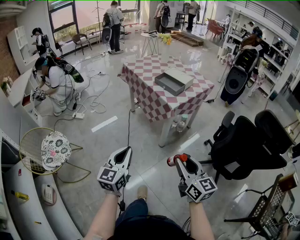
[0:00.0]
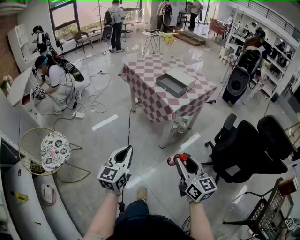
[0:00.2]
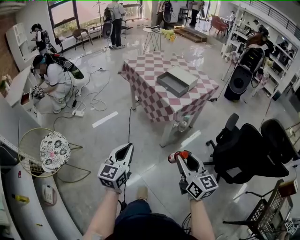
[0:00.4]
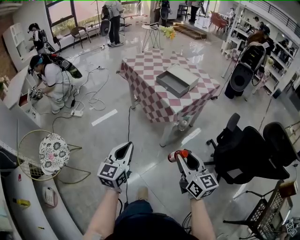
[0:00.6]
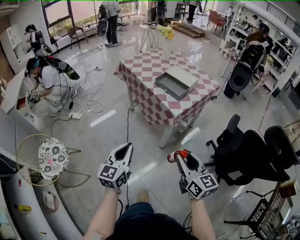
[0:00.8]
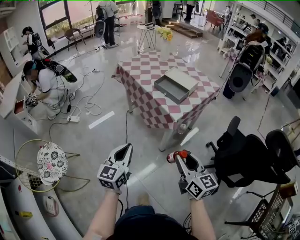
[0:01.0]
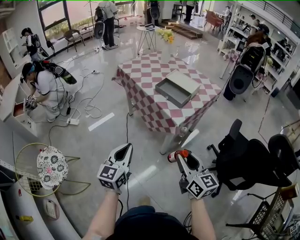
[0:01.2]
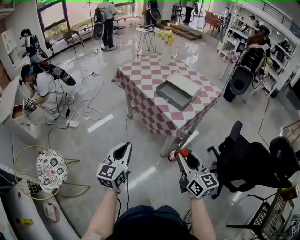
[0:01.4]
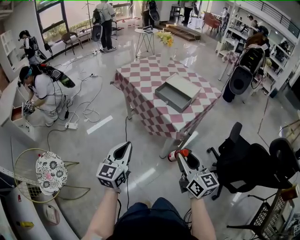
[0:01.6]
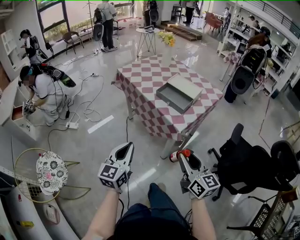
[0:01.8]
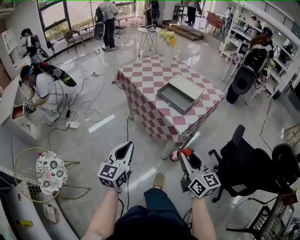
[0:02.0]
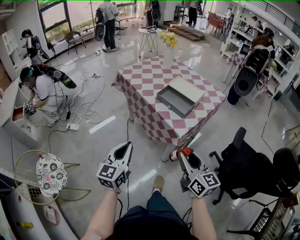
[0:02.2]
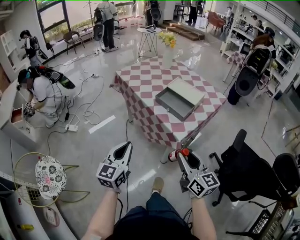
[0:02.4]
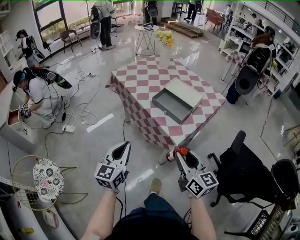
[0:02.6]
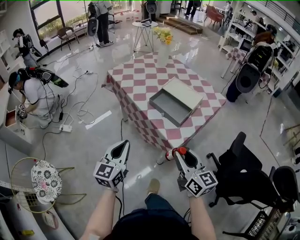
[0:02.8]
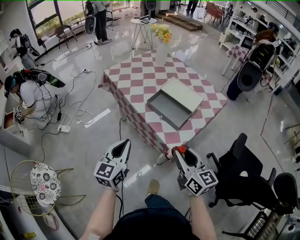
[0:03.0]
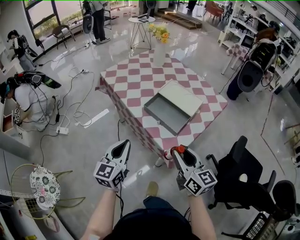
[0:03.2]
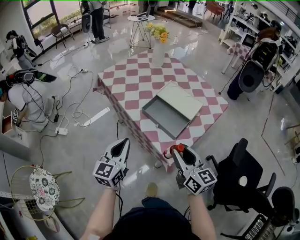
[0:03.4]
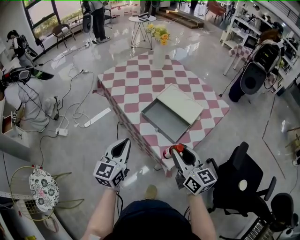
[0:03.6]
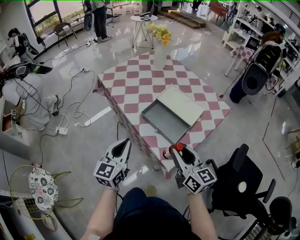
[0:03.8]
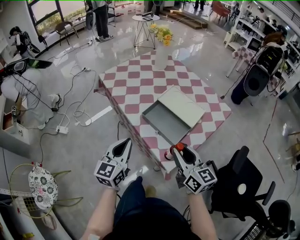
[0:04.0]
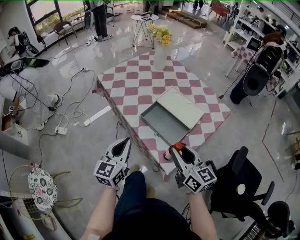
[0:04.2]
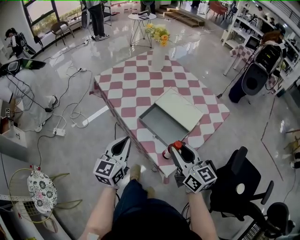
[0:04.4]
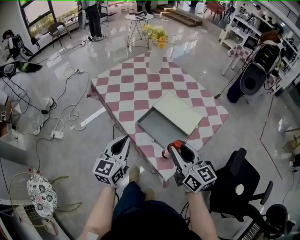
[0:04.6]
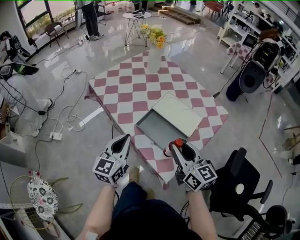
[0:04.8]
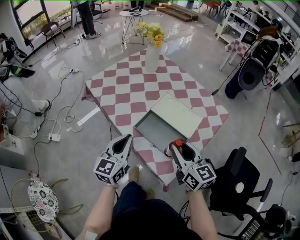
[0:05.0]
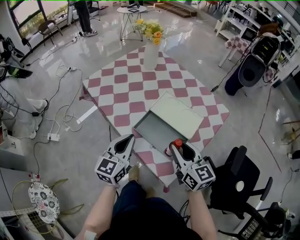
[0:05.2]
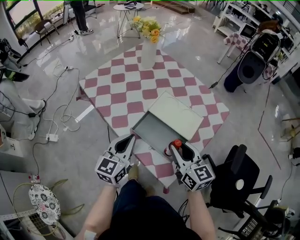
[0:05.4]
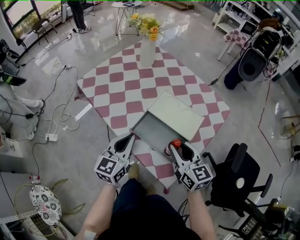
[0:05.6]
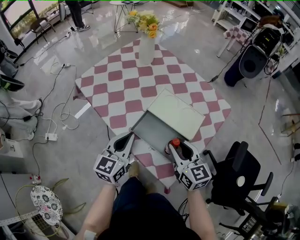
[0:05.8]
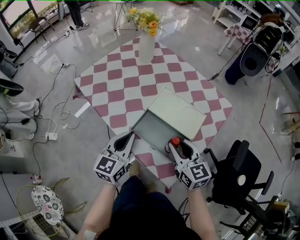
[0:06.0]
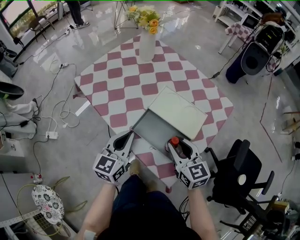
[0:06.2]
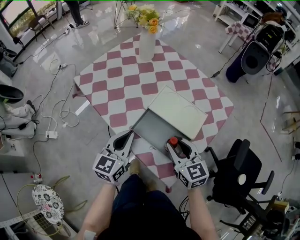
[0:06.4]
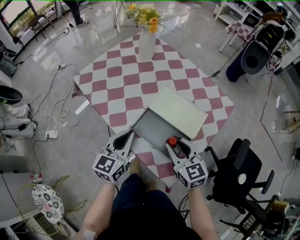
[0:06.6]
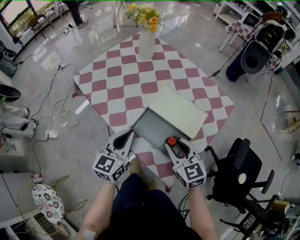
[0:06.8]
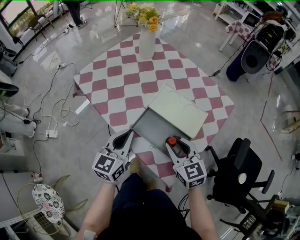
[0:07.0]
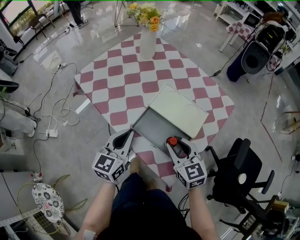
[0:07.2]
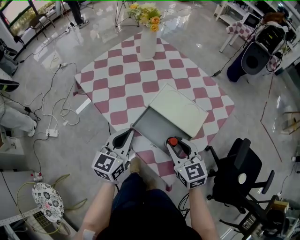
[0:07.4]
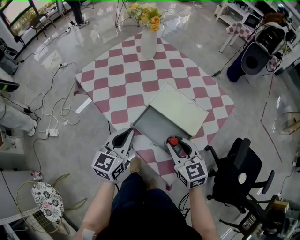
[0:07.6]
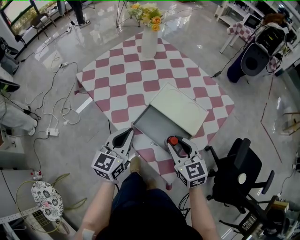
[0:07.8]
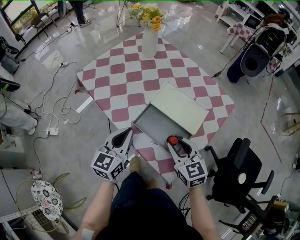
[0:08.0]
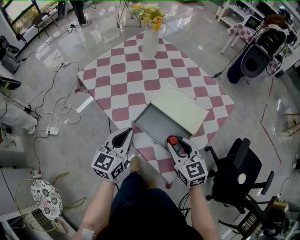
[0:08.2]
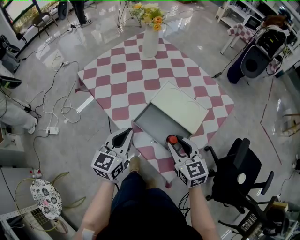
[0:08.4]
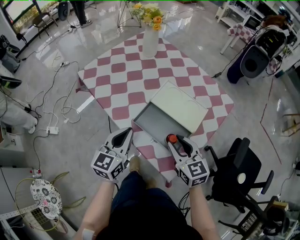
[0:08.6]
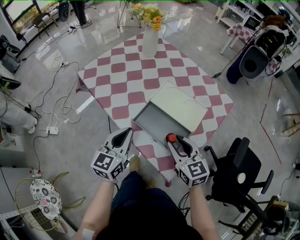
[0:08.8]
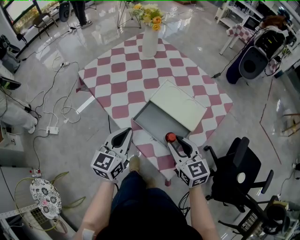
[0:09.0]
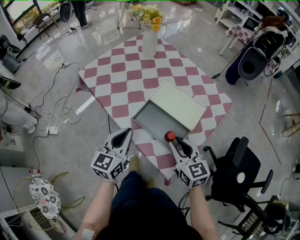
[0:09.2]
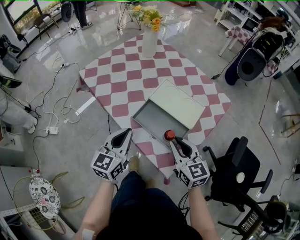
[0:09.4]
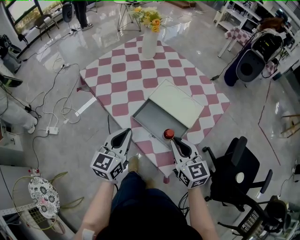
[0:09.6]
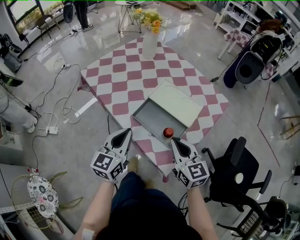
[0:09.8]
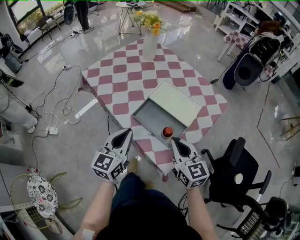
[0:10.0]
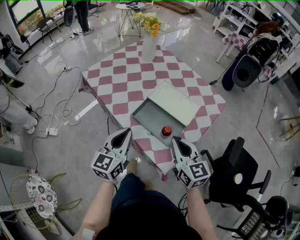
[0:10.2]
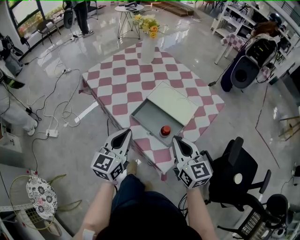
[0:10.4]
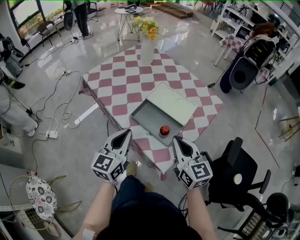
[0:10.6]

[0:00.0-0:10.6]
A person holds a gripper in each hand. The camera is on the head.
0:00.0 to 0:01.6: The two grippers go roughly 25 cm forward.
0:01.6 to 0:03.0: Both grippers travel together forward, about 20 cm.
0:03.0 to 0:04.6: Both grippers travel together forward, about 15 cm.
0:04.6 to 0:06.0: The left gripper moves forward, approximately 10 cm; the right gripper heads forward and downward, covering approximately 10 cm.
0:06.0 to 0:09.0: The grippers move only a little.
0:09.0 to 0:10.6: The left gripper shifts about 5 cm backward. Meanwhile the right gripper moves upward and backward, some 10 cm, and closes.

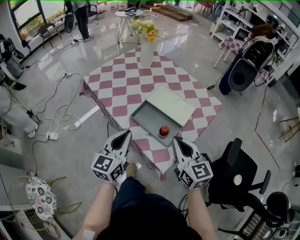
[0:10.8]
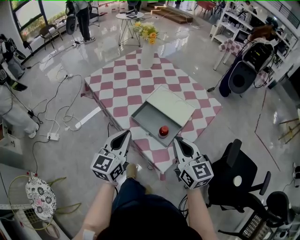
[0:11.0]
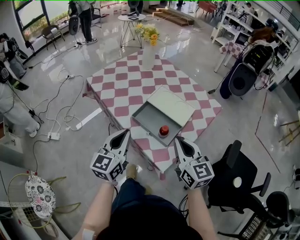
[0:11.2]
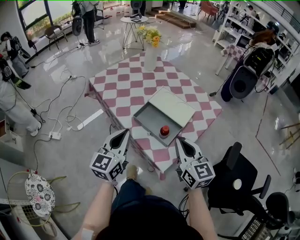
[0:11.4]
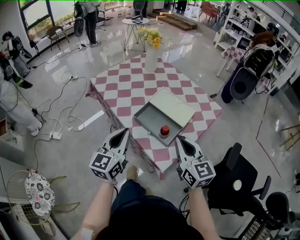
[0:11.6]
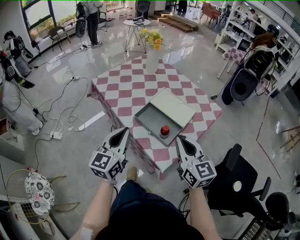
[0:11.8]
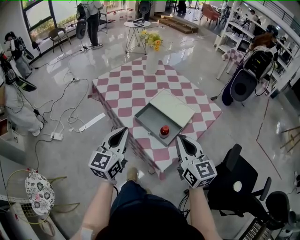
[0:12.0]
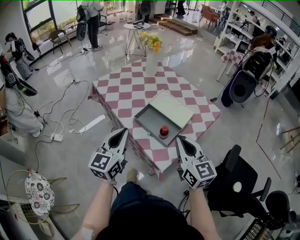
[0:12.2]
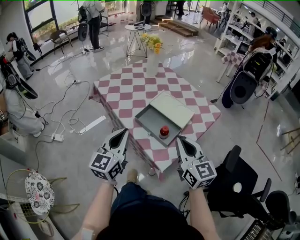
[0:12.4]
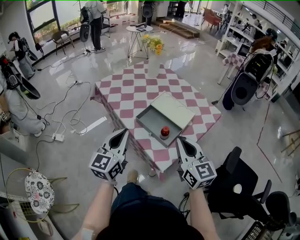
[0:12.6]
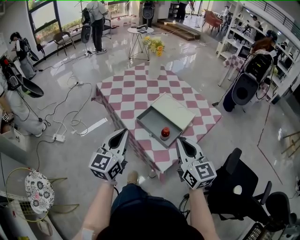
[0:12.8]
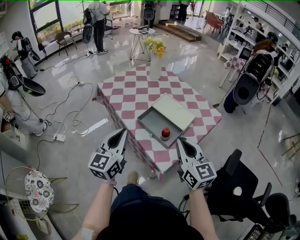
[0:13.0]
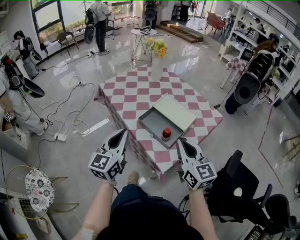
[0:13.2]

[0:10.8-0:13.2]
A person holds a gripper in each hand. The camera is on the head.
0:10.8 to 0:12.0: The right gripper shifts by roughly 5 cm. The left gripper changes place by about 5 cm.
0:12.0 to 0:13.2: The grippers make only small movements.

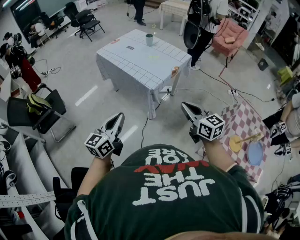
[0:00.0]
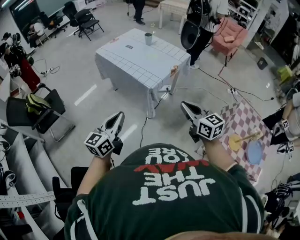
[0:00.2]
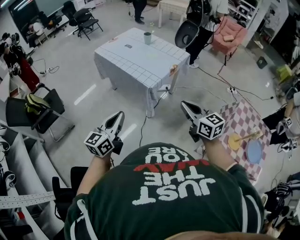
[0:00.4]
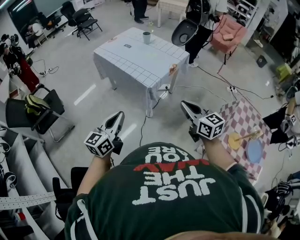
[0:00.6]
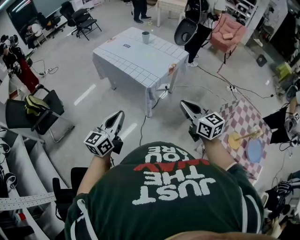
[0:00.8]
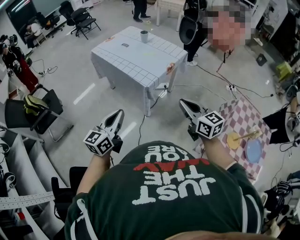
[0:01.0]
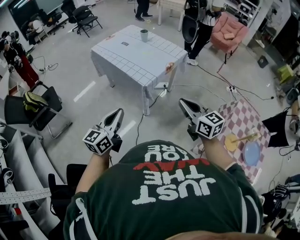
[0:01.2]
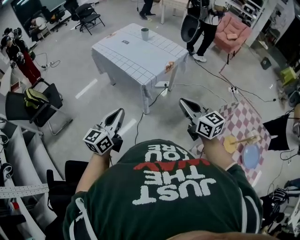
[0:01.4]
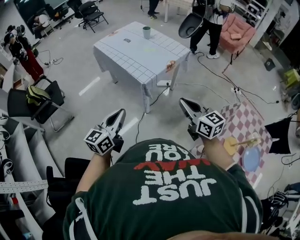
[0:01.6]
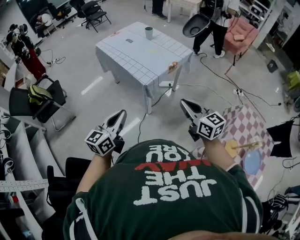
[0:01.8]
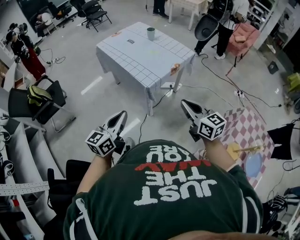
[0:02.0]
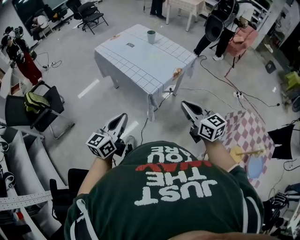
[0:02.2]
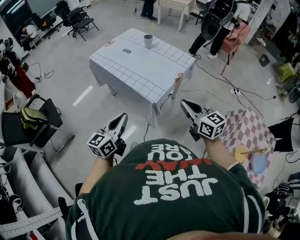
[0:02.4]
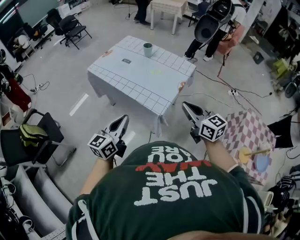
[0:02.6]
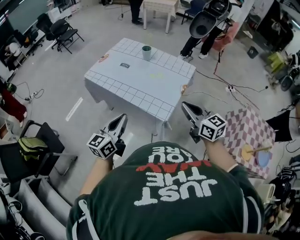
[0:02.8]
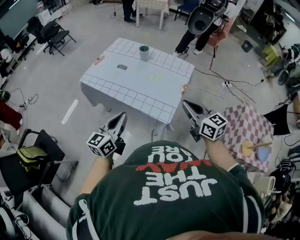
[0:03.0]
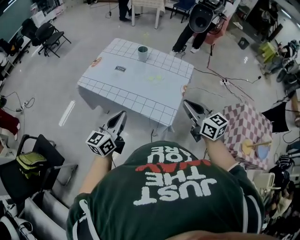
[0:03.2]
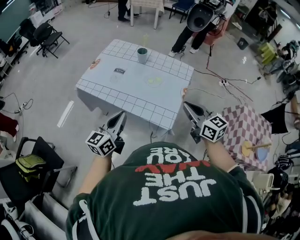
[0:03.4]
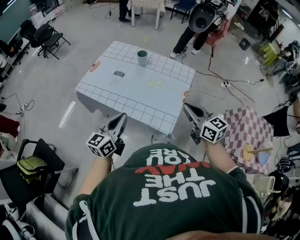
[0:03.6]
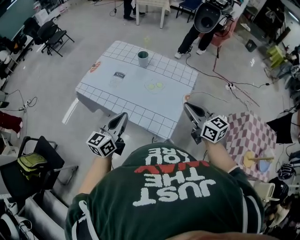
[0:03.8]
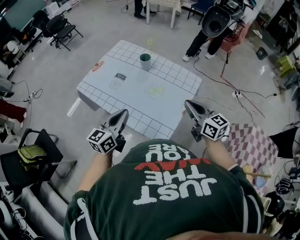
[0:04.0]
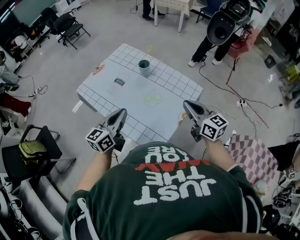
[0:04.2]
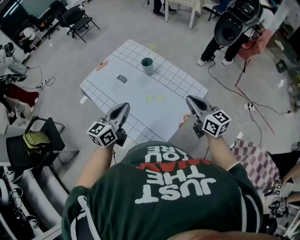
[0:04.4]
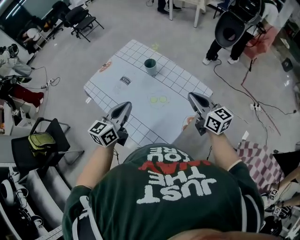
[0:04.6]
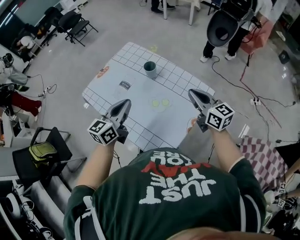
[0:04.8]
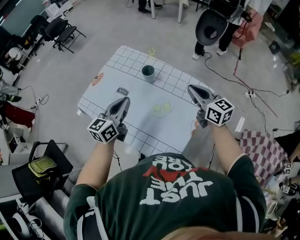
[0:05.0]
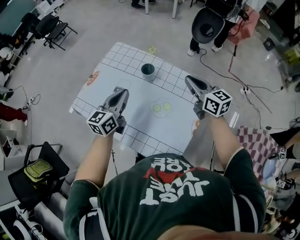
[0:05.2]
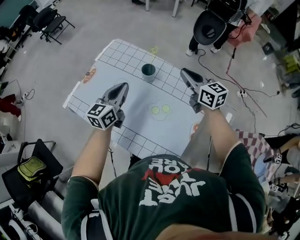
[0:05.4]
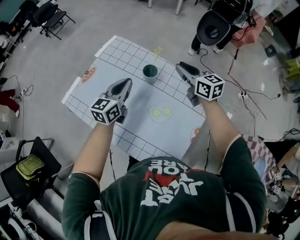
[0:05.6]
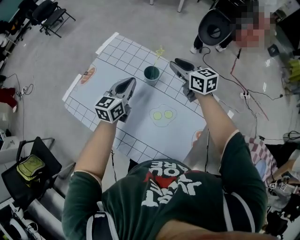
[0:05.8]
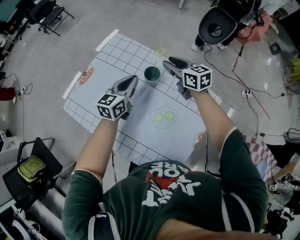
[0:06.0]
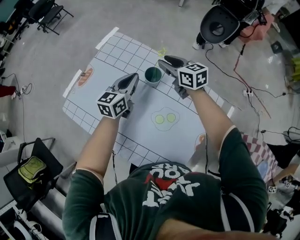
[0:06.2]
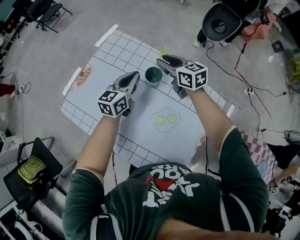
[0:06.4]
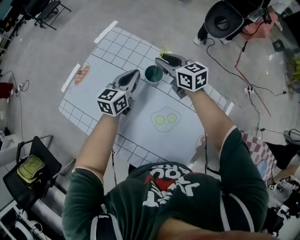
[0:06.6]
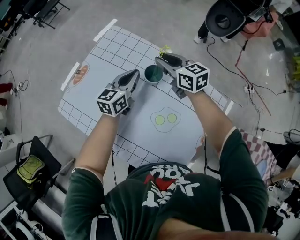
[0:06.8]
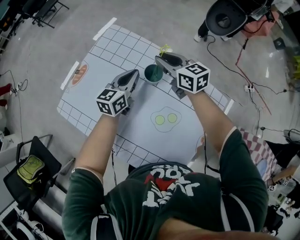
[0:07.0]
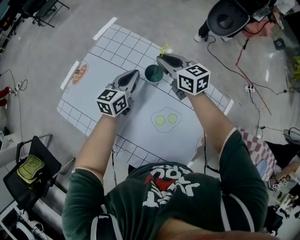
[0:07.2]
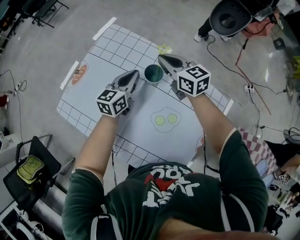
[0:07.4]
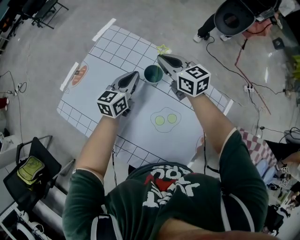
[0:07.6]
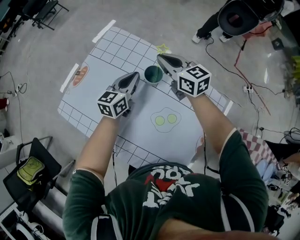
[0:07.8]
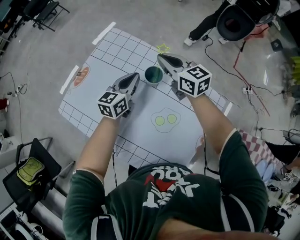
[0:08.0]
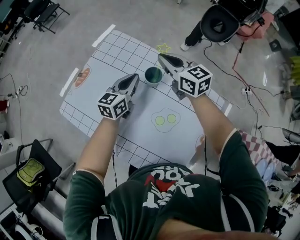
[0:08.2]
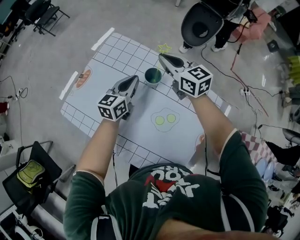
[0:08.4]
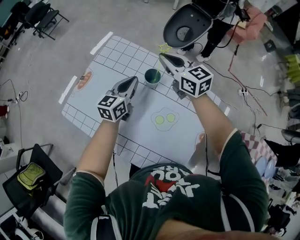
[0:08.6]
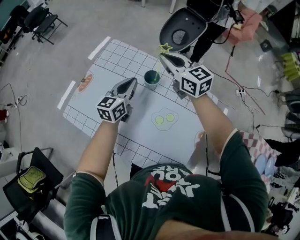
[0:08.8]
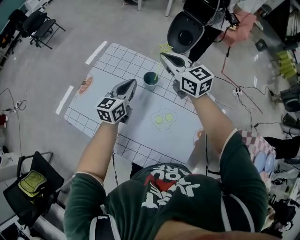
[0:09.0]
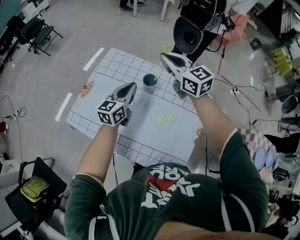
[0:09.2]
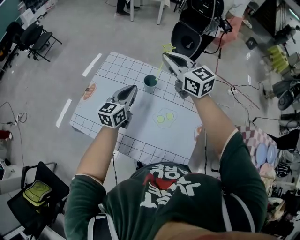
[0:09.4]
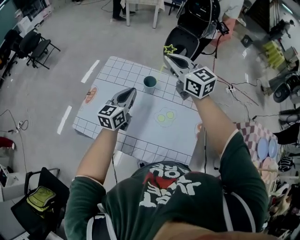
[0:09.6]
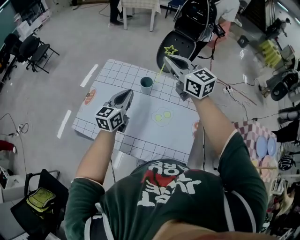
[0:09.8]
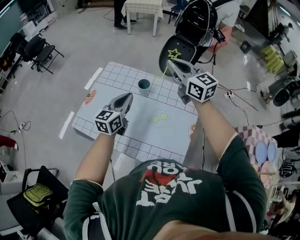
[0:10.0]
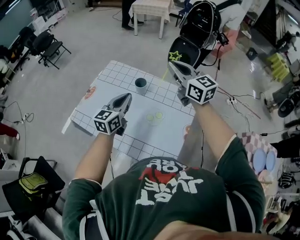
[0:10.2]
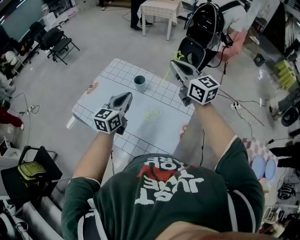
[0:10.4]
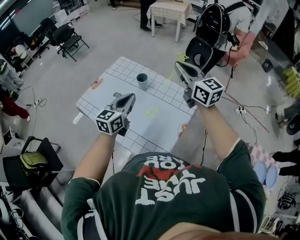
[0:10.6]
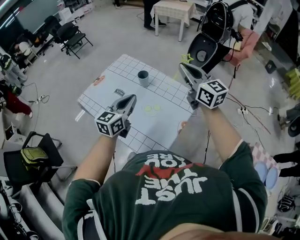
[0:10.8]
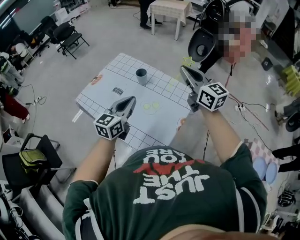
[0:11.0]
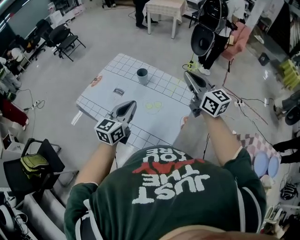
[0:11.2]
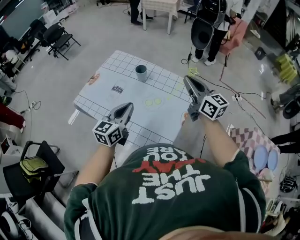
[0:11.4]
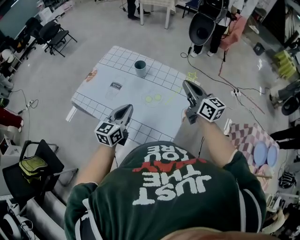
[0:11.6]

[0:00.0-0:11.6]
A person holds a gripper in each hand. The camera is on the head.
0:00.0 to 0:01.4: Both grippers travel together to the right, roughly 5 cm.
0:01.4 to 0:02.8: The two grippers go approximately 35 cm forward and to the left.
0:02.8 to 0:04.4: The two grippers go about 30 cm forward.
0:04.4 to 0:05.8: Both grippers move forward, approximately 30 cm. The right gripper opens its fingers.
0:05.8 to 0:07.2: The right gripper travels to the left, downward and forward by approximately 10 cm. The left gripper is displaced downward and forward by about 10 cm.
0:07.2 to 0:08.8: The left gripper heads upward, covering about 5 cm; the right gripper moves upward, about 15 cm.
0:08.8 to 0:10.2: The left gripper shifts roughly 20 cm backward and upward. Meanwhile the right gripper travels upward, backward and to the right by roughly 25 cm.
0:10.2 to 0:11.6: The left gripper travels backward by about 15 cm. Meanwhile the right gripper goes approximately 20 cm backward, downward and to the right.
